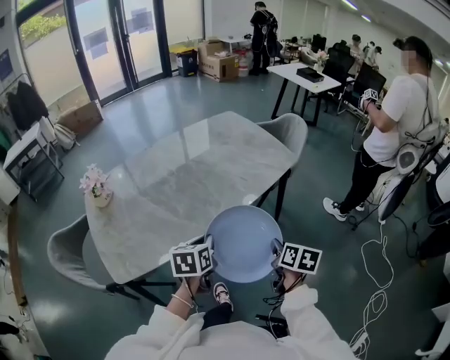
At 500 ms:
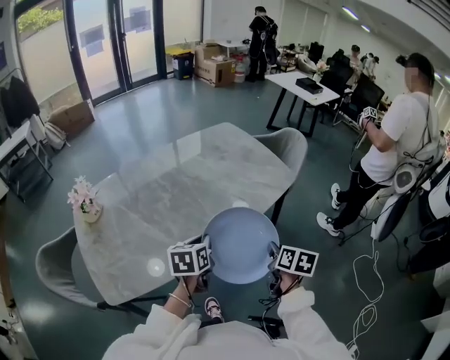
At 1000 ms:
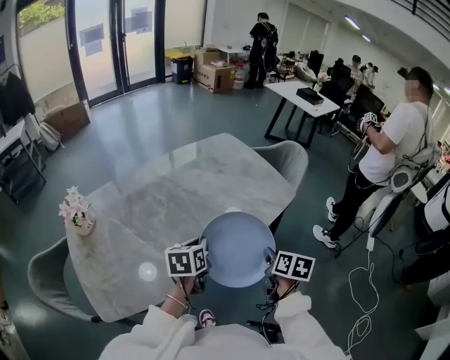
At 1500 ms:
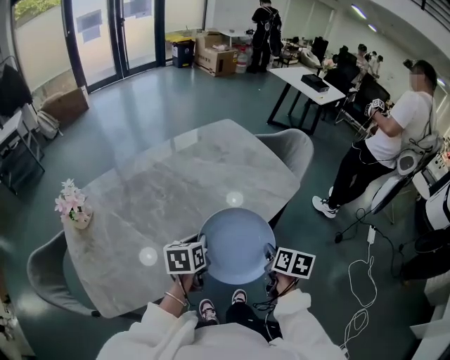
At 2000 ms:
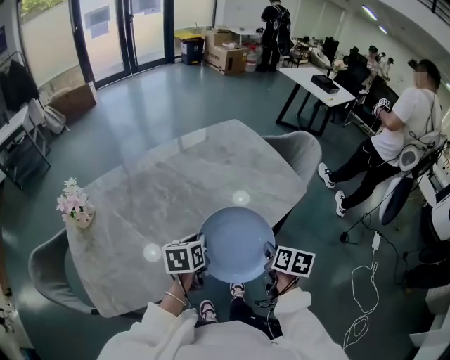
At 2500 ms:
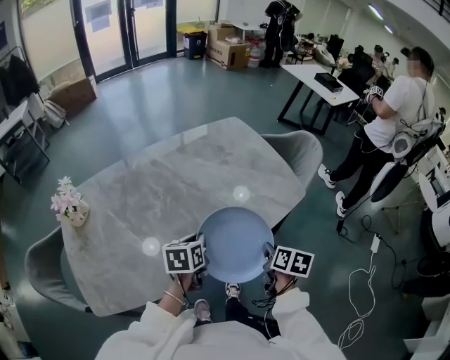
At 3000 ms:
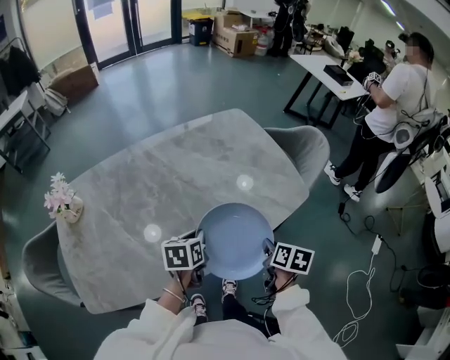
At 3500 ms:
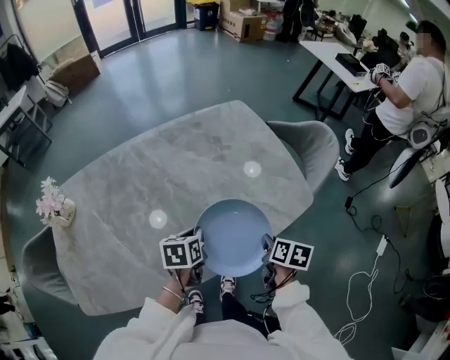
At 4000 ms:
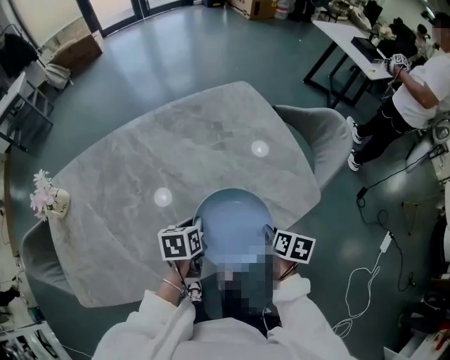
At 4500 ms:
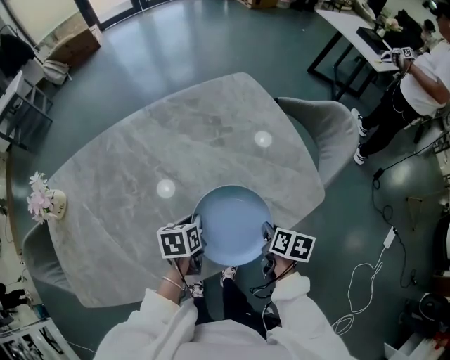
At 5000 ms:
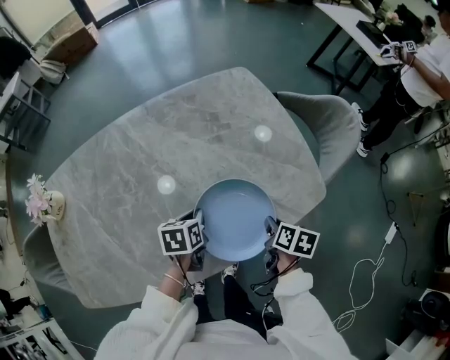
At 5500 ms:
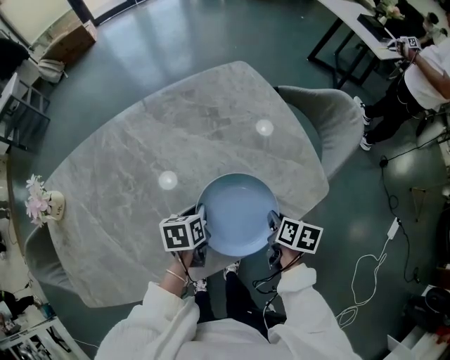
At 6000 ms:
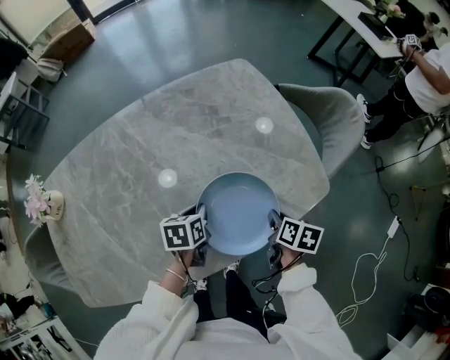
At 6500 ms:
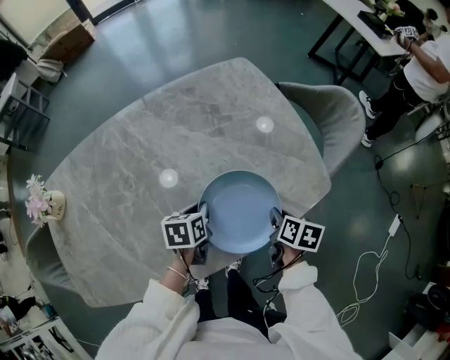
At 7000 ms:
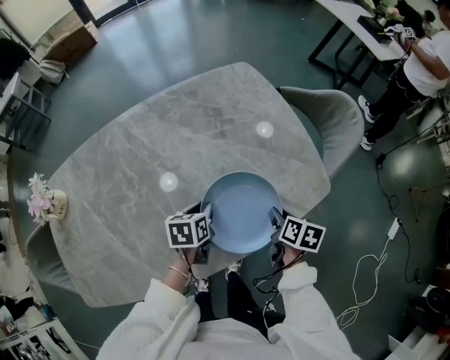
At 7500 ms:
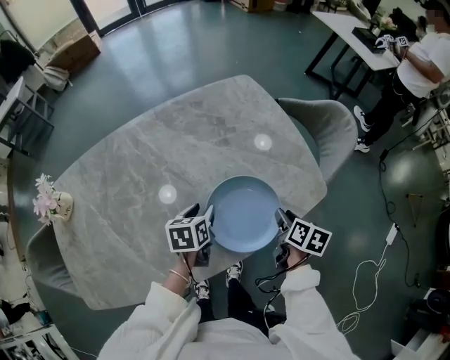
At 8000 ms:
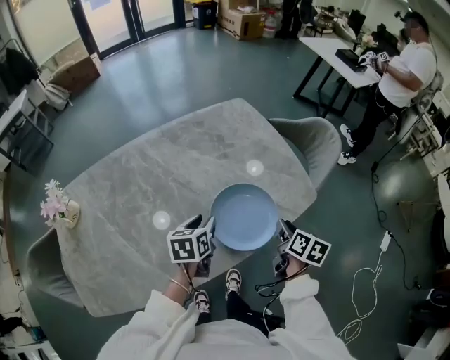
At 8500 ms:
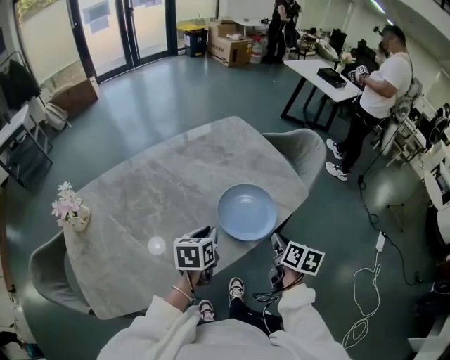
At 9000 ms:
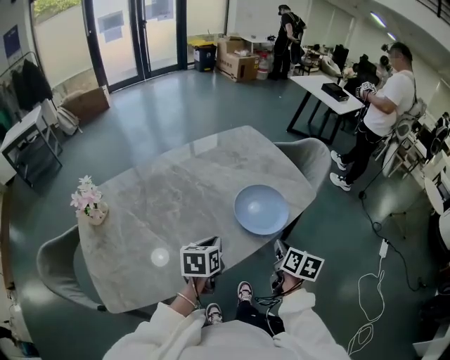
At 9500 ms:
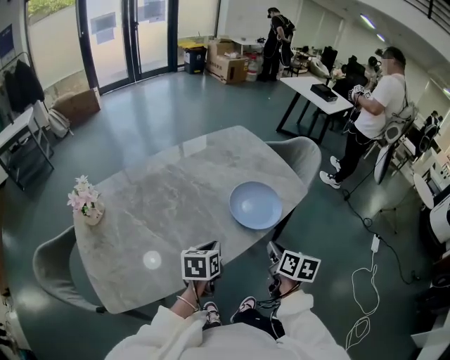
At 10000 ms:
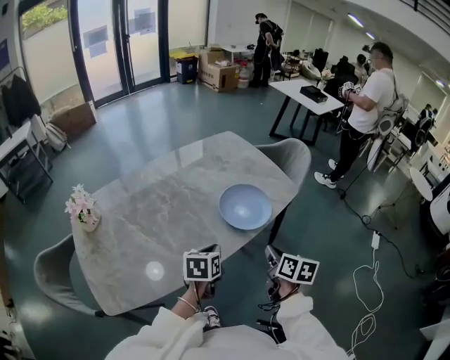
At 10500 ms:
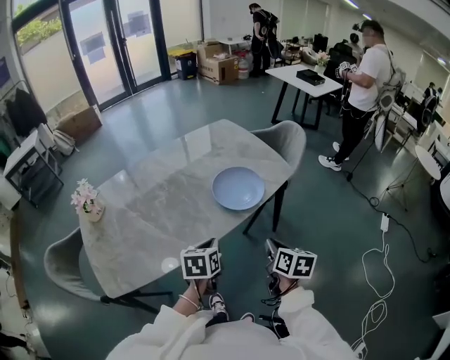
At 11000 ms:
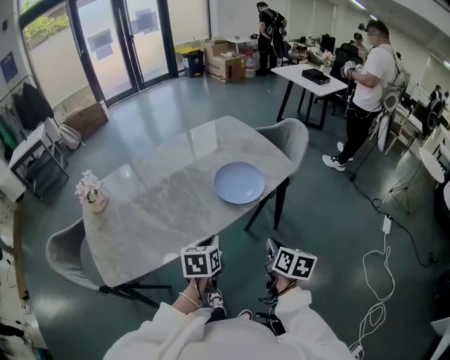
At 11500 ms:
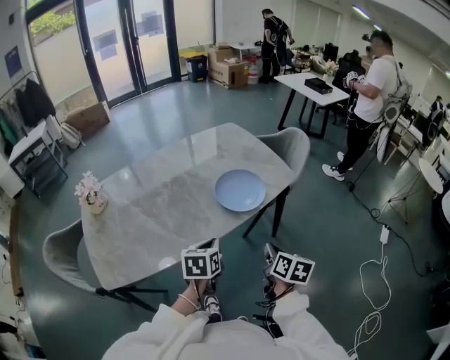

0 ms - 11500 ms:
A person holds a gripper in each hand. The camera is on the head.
0 ms - 2000 ms: Both grippers travel together forward, some 20 cm.
2000 ms - 4000 ms: The grippers both shift forward, downward and to the right by approximately 20 cm.
4000 ms - 6000 ms: The left gripper moves some 5 cm.
6000 ms - 7500 ms: The left gripper opens, while the right gripper opens.
7500 ms - 9500 ms: The right gripper shifts some 30 cm backward, upward and to the left, and closes up. The left gripper travels backward and upward by some 25 cm, and closes its fingers.
9500 ms - 11500 ms: The right gripper travels backward and to the right by about 15 cm. The left gripper is displaced to the right and backward by some 10 cm.

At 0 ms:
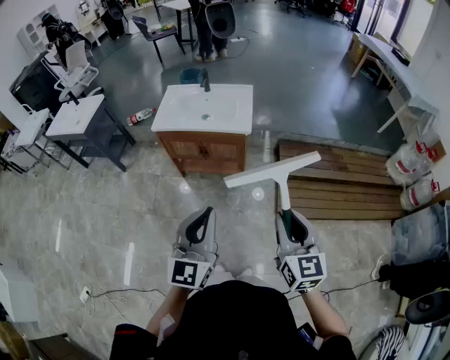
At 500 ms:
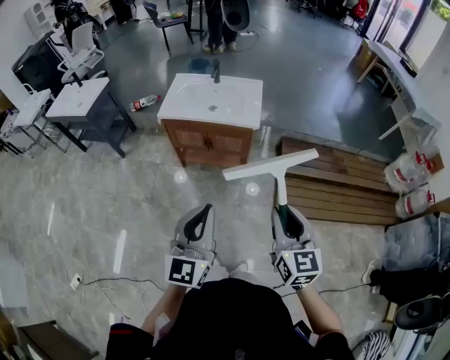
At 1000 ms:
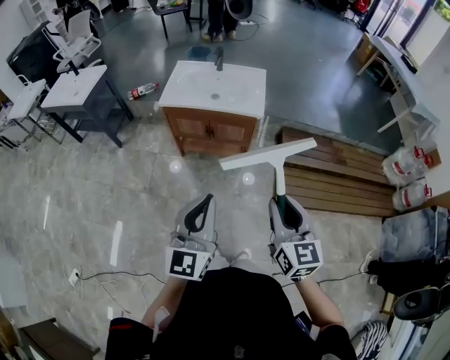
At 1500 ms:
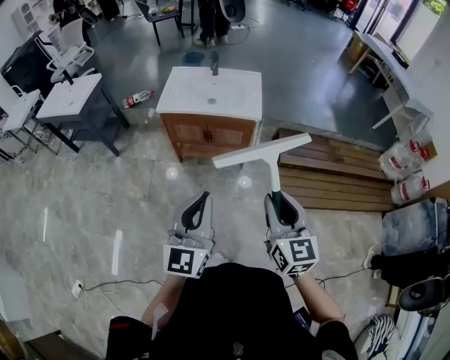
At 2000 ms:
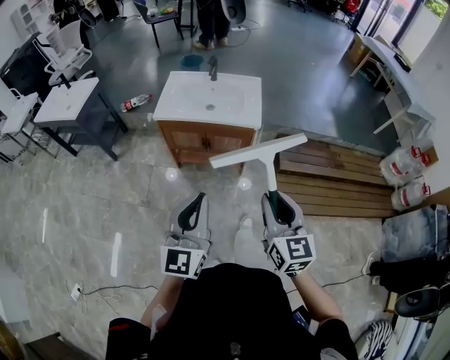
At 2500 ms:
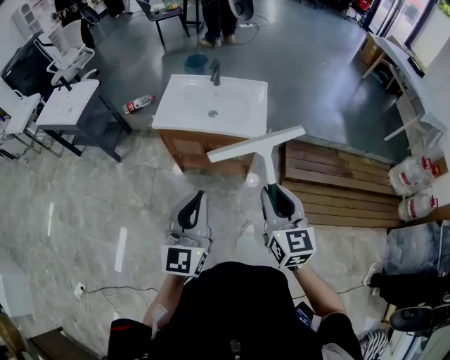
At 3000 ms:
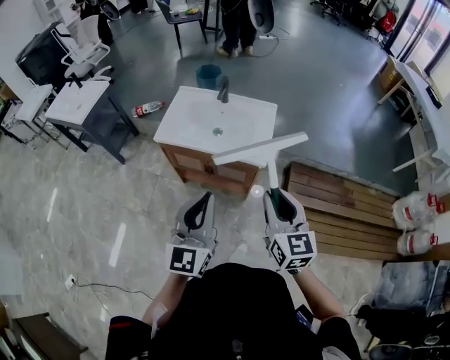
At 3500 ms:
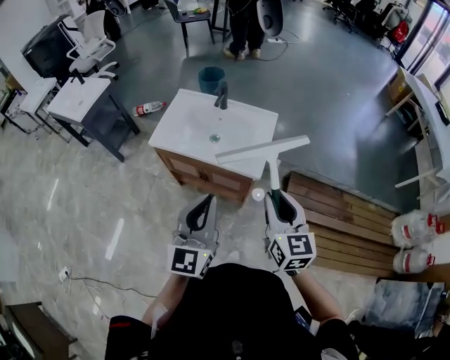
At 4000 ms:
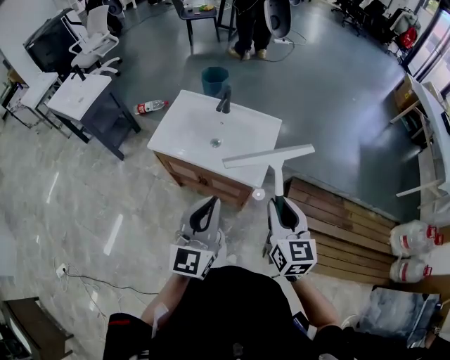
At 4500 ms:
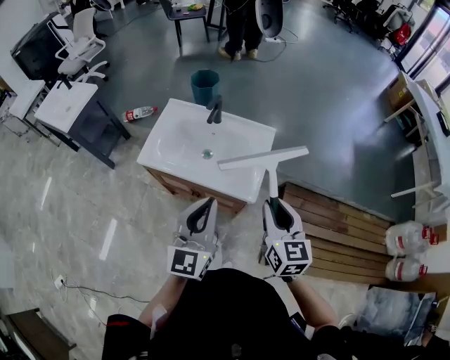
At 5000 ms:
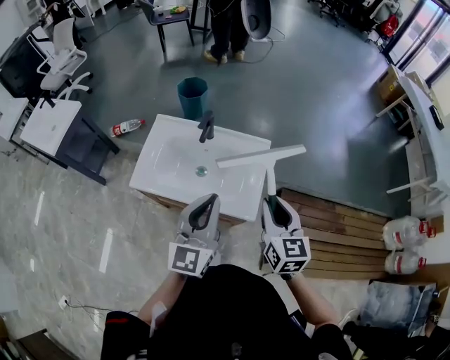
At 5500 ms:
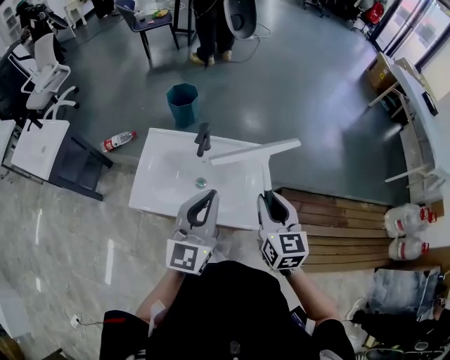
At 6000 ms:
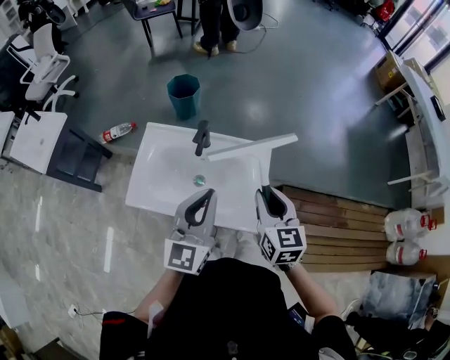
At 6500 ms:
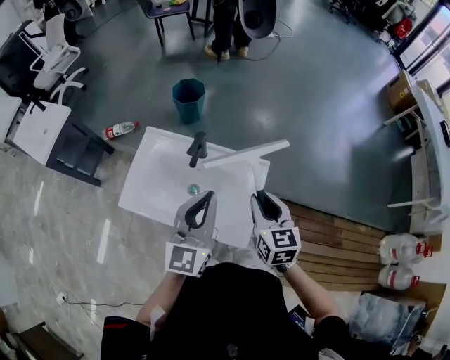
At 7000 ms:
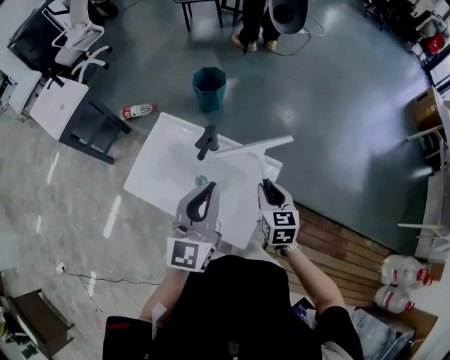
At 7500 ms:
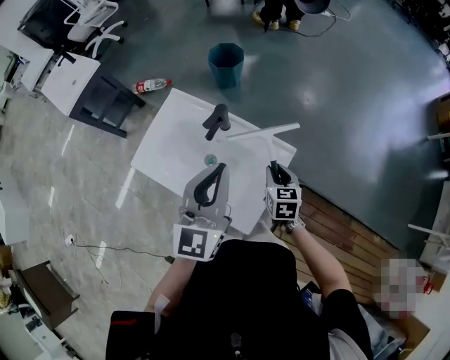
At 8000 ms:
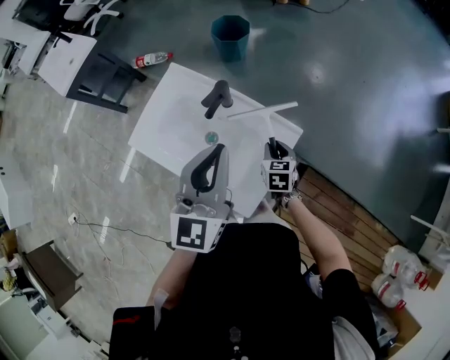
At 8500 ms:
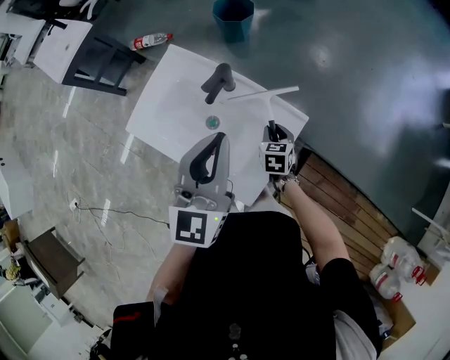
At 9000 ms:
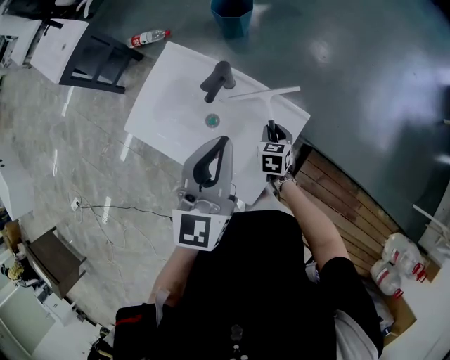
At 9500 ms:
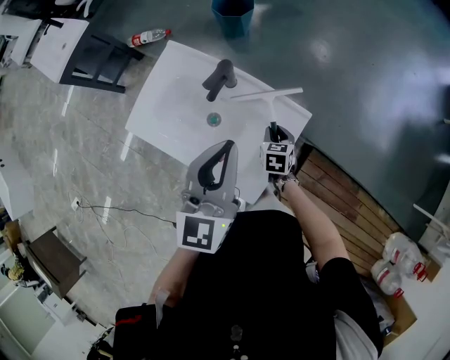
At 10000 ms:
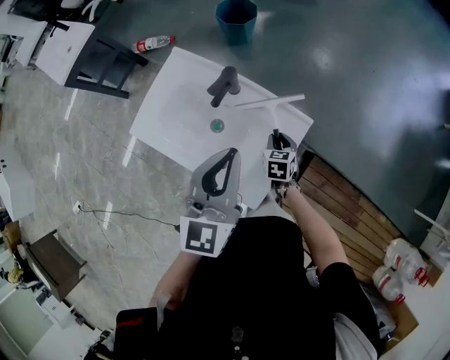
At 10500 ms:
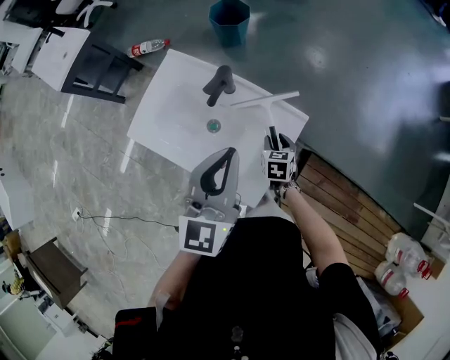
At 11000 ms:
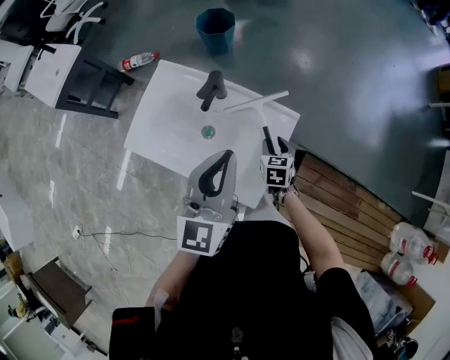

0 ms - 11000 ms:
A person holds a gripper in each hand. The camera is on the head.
0 ms - 2000 ms: Both grippers travel together to the left and forward, approximately 15 cm.
2000 ms - 3500 ms: The right gripper moves forward, some 30 cm. The left gripper shifts roughly 30 cm forward and to the right.
3500 ms - 5500 ms: Both grippers move forward, about 30 cm.
5500 ms - 7500 ms: The right gripper shifts roughly 25 cm downward and forward, and changes its angle by about 30 degrees. Meanwhile the left gripper heads forward and to the right, covering about 15 cm, and changes its angle by approximately 20 degrees.
7500 ms - 9000 ms: The right gripper moves downward, roughly 10 cm.
9000 ms - 11000 ms: The grippers make only small movements.

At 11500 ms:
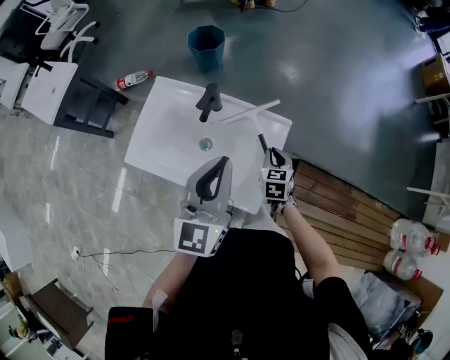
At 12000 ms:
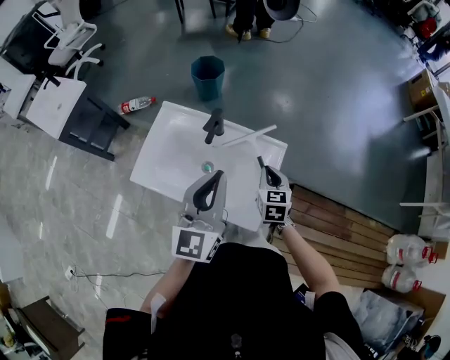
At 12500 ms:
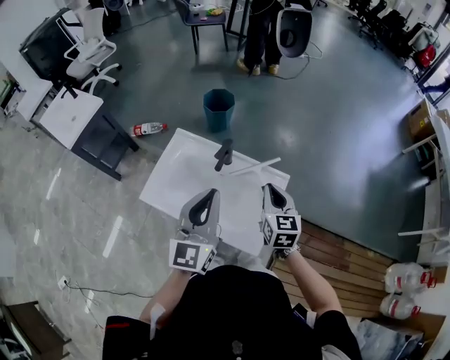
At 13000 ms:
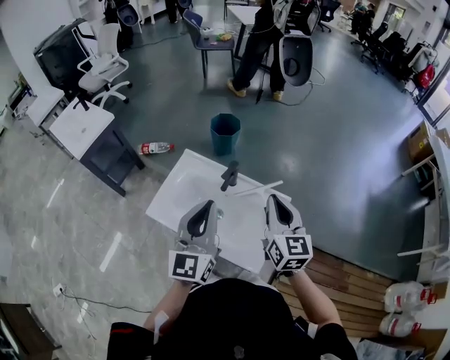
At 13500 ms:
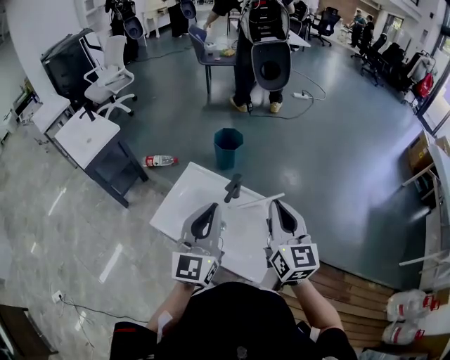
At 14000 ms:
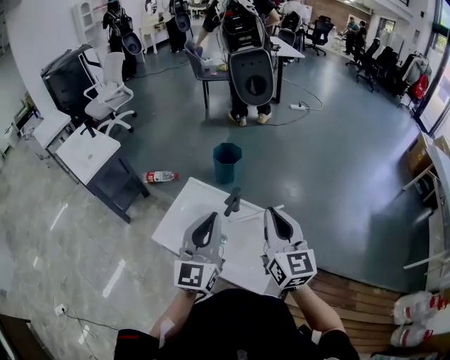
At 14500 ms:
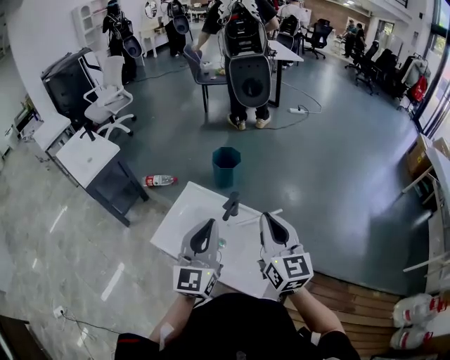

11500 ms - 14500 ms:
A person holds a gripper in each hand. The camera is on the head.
11500 ms - 13000 ms: The left gripper goes some 15 cm to the left and upward. The right gripper moves upward, roughly 30 cm, and points its fingers approximately 40 degrees further upward.
13000 ms - 14500 ms: The right gripper goes some 5 cm upward.

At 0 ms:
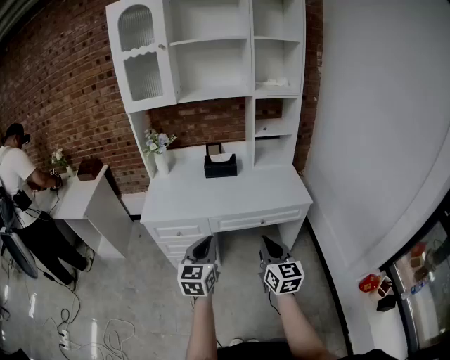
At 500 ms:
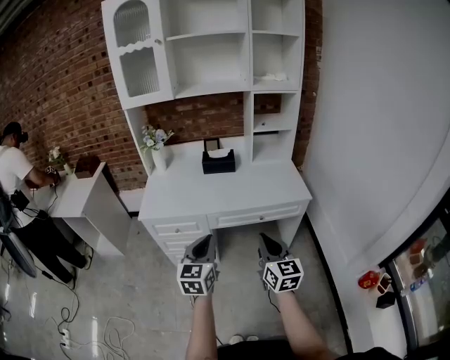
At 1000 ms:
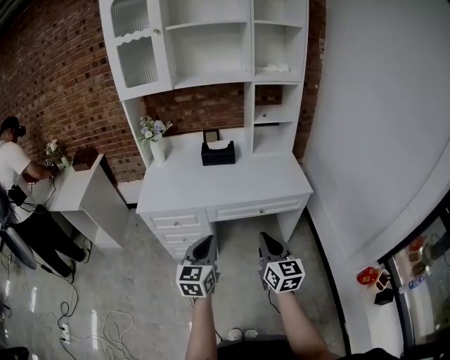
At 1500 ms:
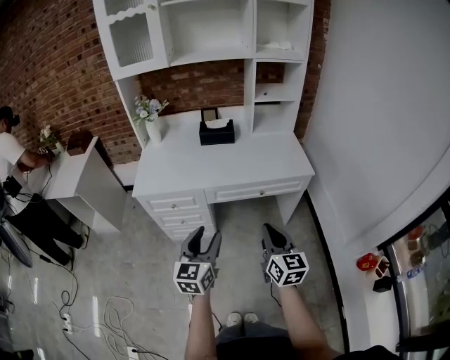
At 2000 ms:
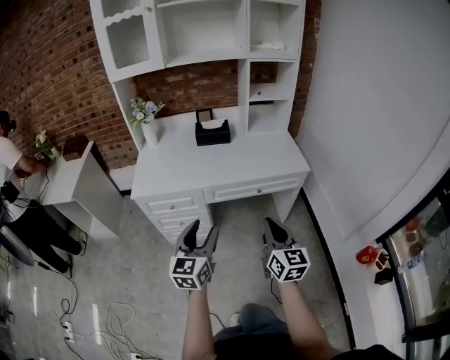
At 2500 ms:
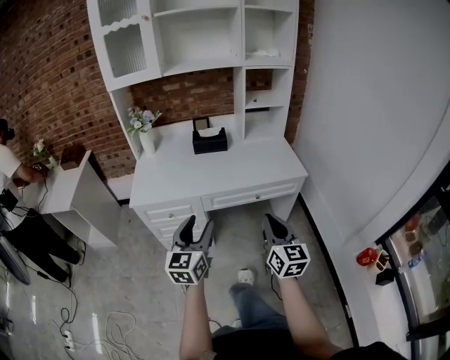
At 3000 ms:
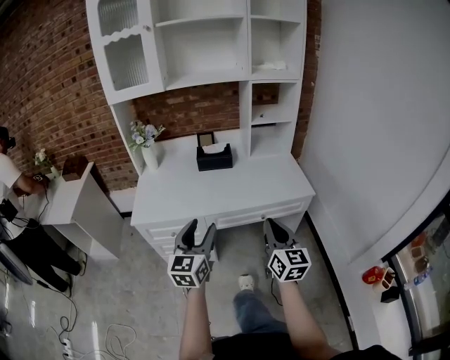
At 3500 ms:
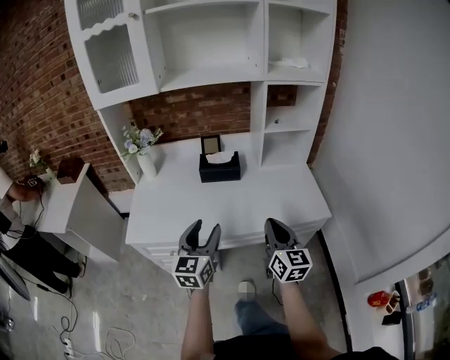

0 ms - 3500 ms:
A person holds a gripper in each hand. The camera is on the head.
0 ms - 2000 ms: The left gripper opens up.
2000 ms - 3500 ms: The grippers both shift forward by roughly 25 cm.
